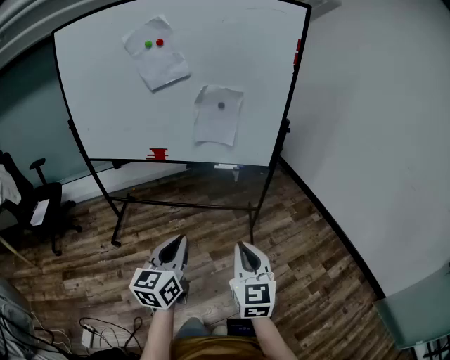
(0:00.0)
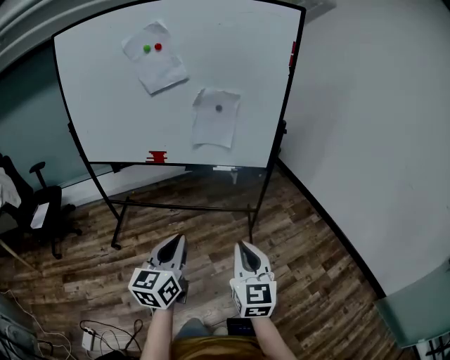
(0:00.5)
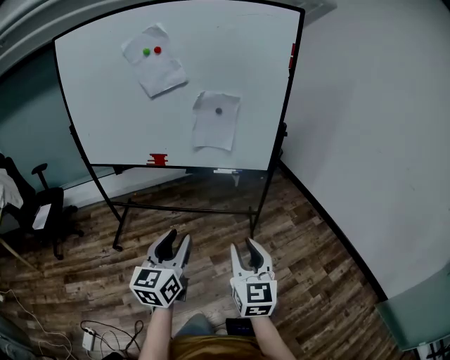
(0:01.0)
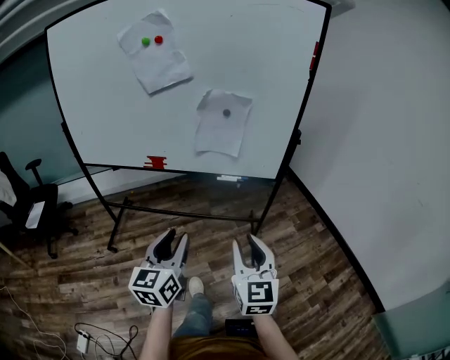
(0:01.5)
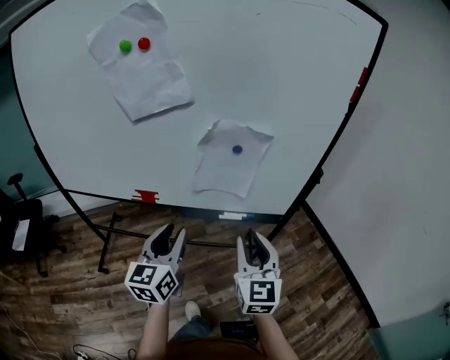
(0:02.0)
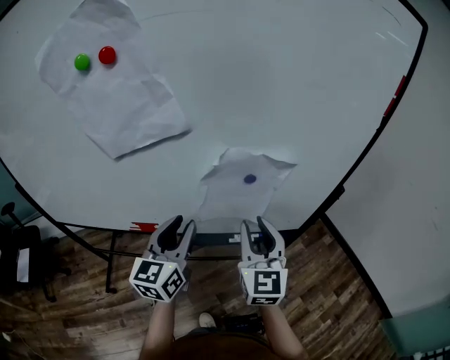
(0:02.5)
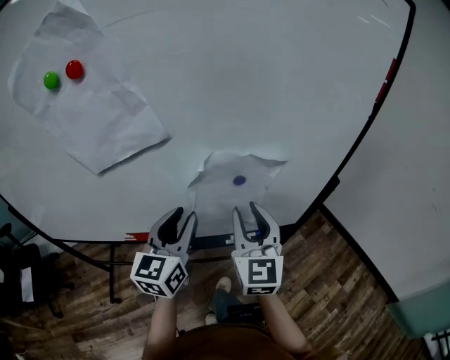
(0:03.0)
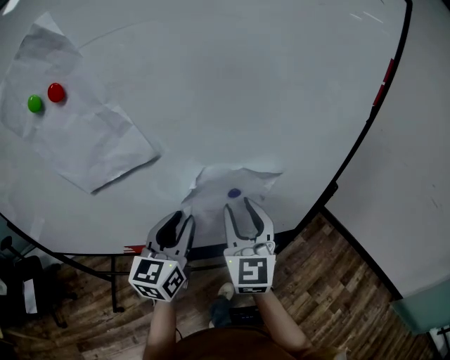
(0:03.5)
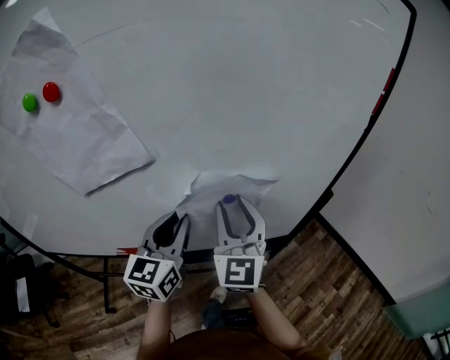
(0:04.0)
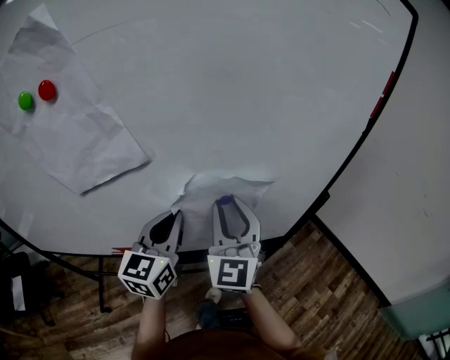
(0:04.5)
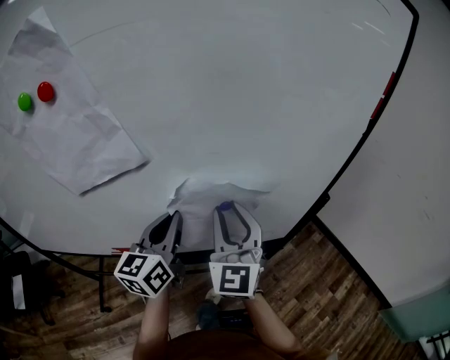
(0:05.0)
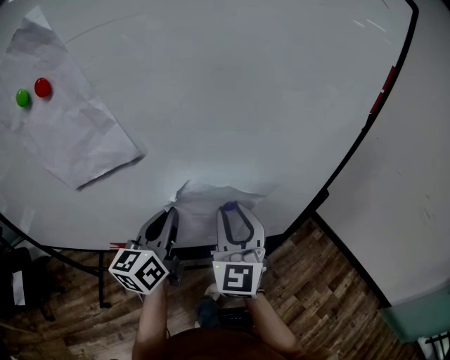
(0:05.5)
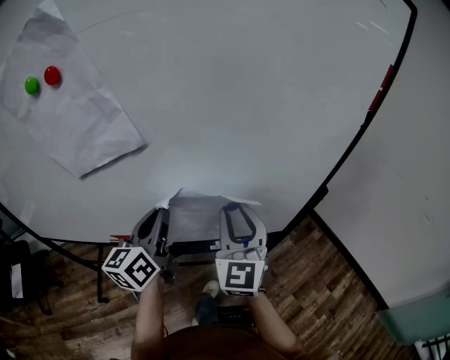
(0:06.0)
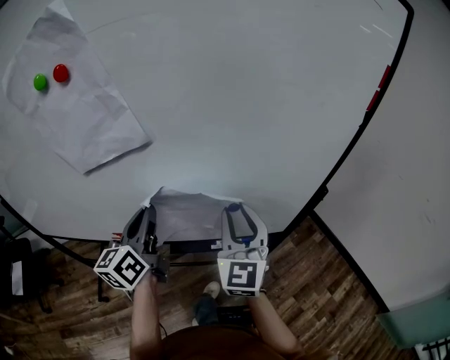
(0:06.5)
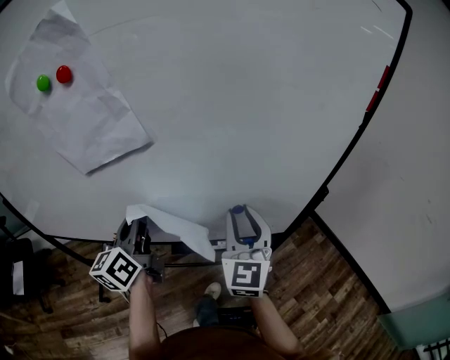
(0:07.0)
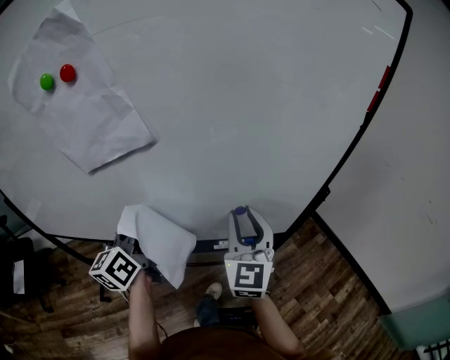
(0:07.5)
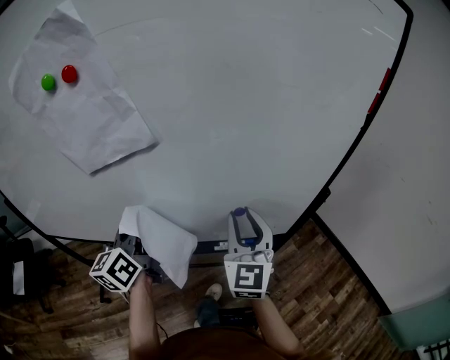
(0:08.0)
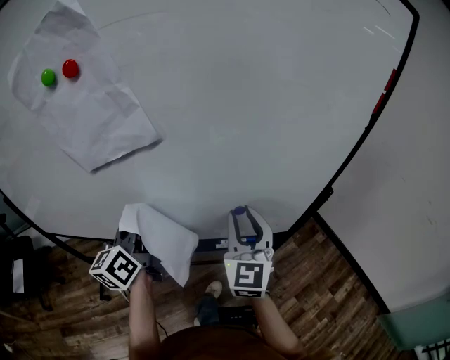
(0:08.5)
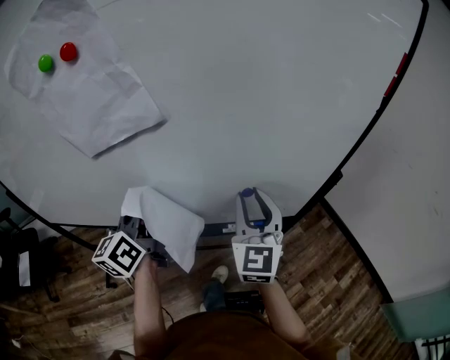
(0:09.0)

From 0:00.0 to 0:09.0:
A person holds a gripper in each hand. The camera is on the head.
From 0:00.0 to 0:02.0: The grippers both shift forward by approximately 35 cm. The left gripper opens. The right gripper opens its fingers.
From 0:02.0 to 0:04.5: The grippers both shift forward by roughly 25 cm. The right gripper changes its angle by some 20 degrees. The left gripper closes.
From 0:04.5 to 0:07.0: The left gripper moves to the left, roughly 10 cm, and swivels approximately 30 degrees. Meanwhile the right gripper changes place by roughly 5 cm.
From 0:07.0 to 0:09.0: There are only small adjustments of the grippers.

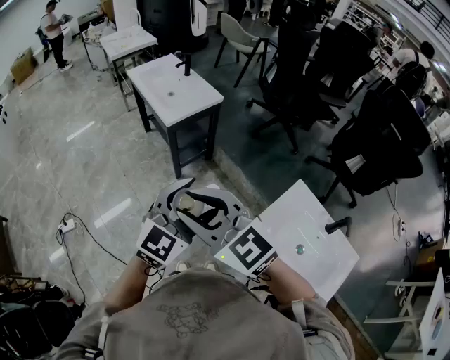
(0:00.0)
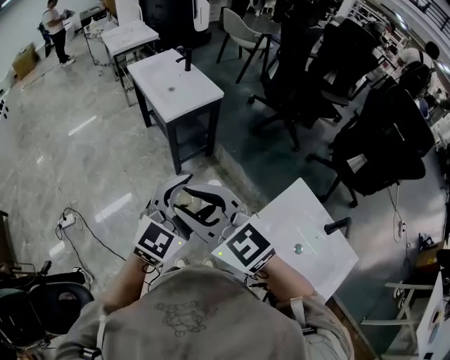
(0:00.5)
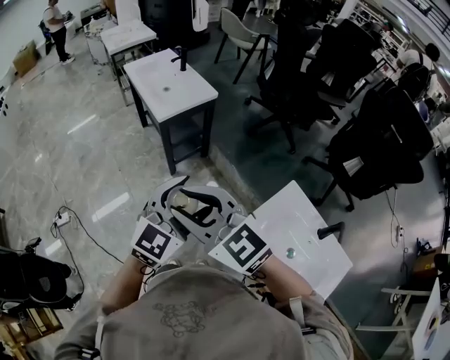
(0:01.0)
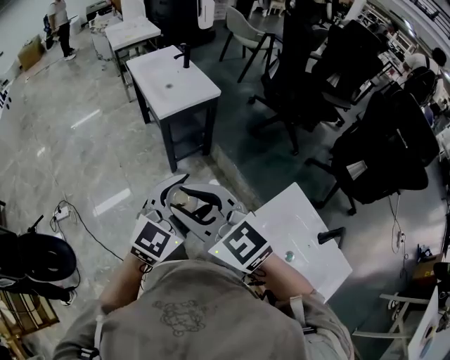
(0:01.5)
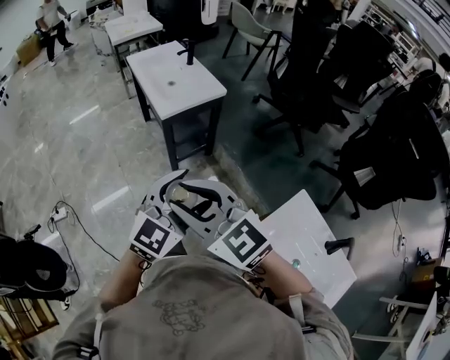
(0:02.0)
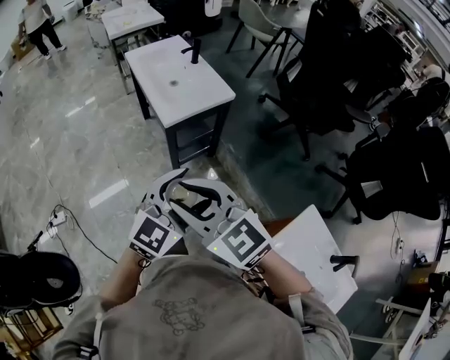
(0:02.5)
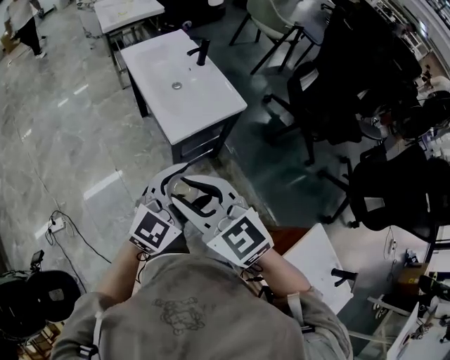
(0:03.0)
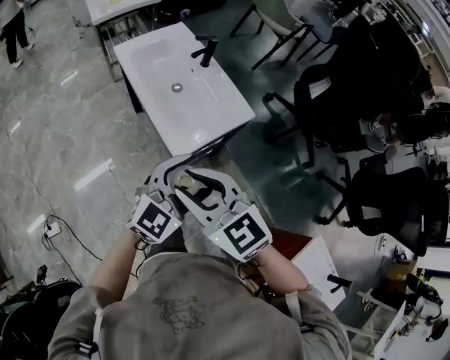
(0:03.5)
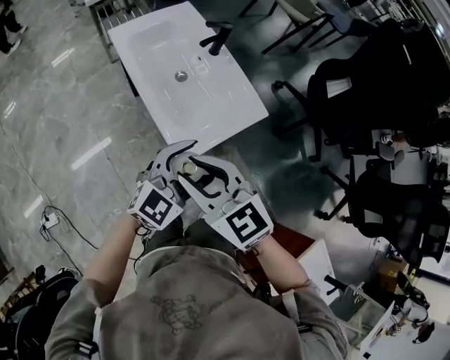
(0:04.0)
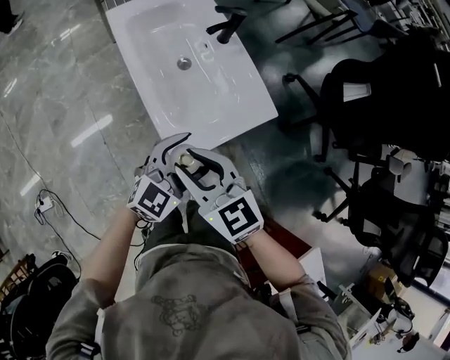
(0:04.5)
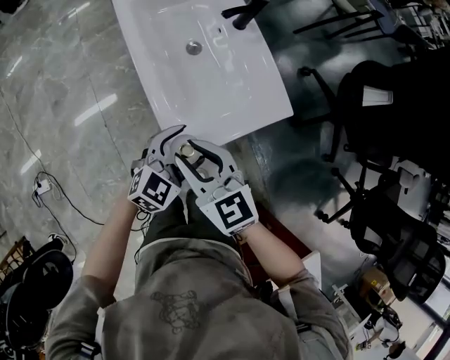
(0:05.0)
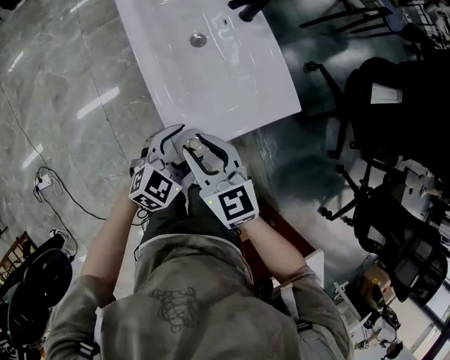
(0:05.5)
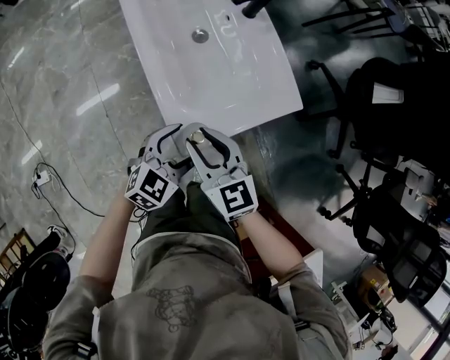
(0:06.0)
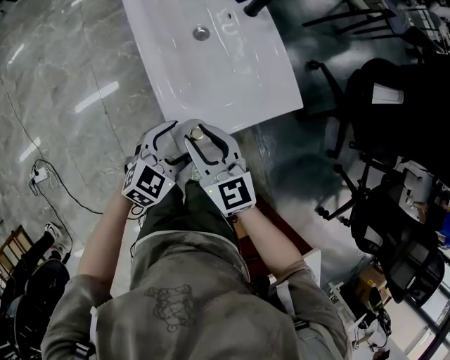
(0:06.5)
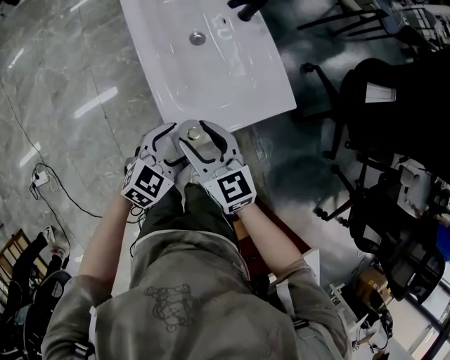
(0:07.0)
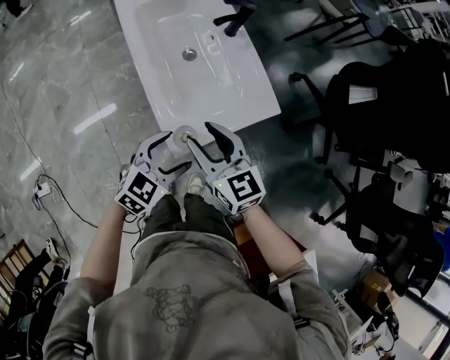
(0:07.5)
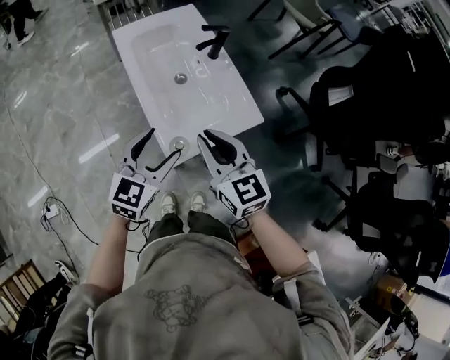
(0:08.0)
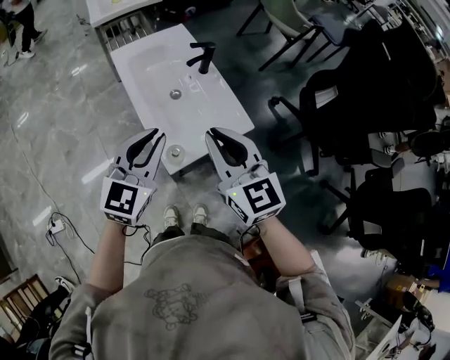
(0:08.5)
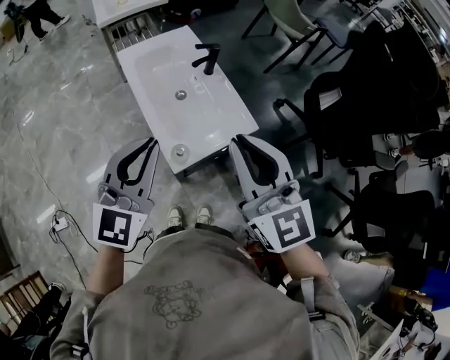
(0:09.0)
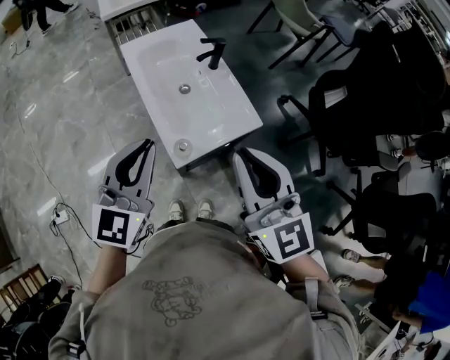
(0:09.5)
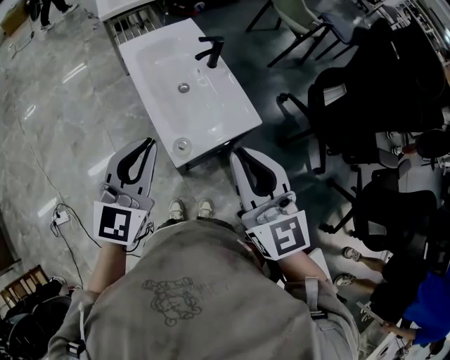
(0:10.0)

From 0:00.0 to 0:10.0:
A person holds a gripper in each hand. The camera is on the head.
From 0:00.0 to 0:02.0: The grippers both shift forward and downward by about 10 cm.
From 0:02.0 to 0:04.0: The two grippers travel together, forward, some 50 cm.
From 0:04.0 to 0:06.0: The left gripper moves downward, roughly 20 cm, and rotates some 20 degrees; the right gripper is displaced downward and forward by some 20 cm.
From 0:06.0 to 0:08.0: Both grippers move upward, some 20 cm. The left gripper turns by some 20 degrees.
From 0:08.0 to 0:10.0: The left gripper heads upward, covering roughly 15 cm, and closes. The right gripper moves upward and backward, roughly 15 cm.

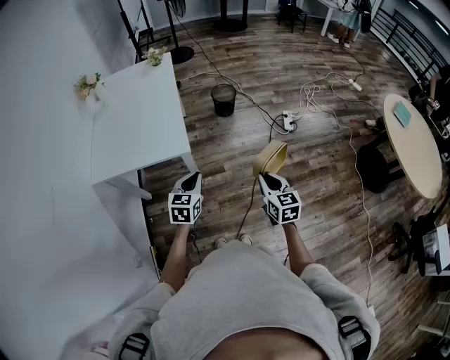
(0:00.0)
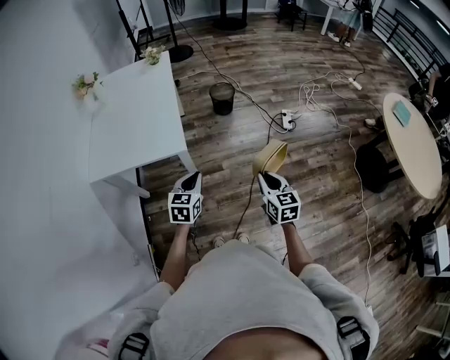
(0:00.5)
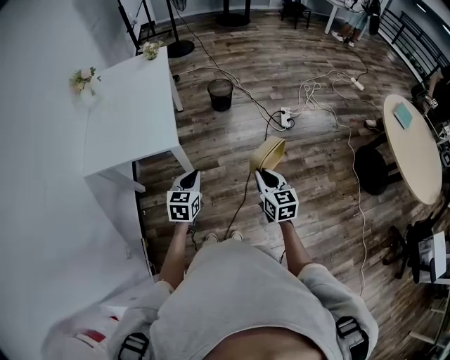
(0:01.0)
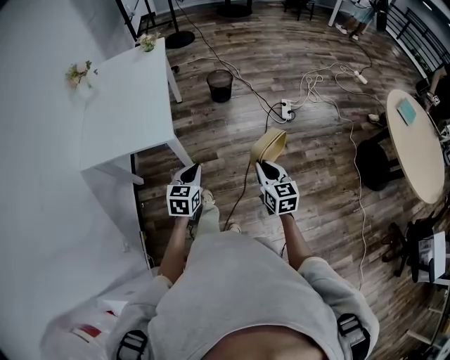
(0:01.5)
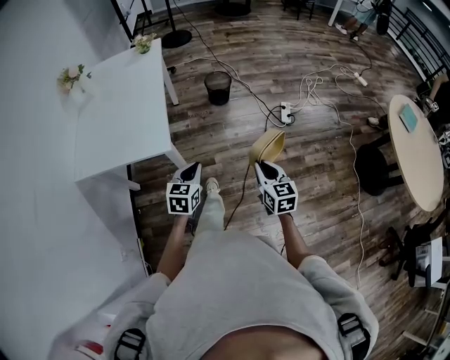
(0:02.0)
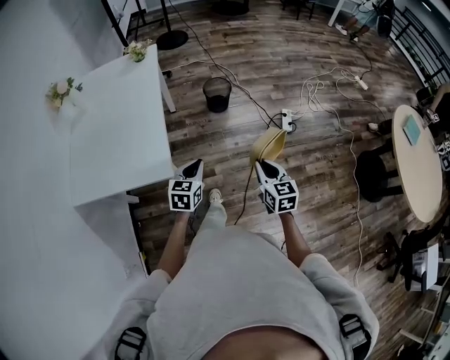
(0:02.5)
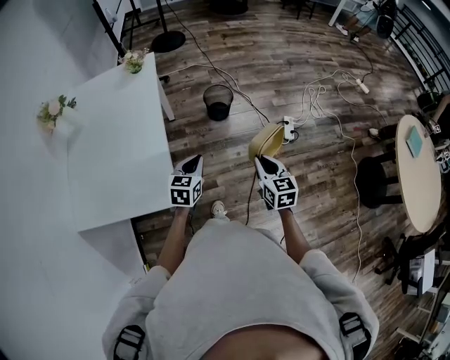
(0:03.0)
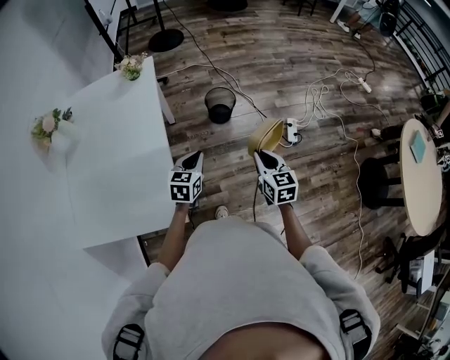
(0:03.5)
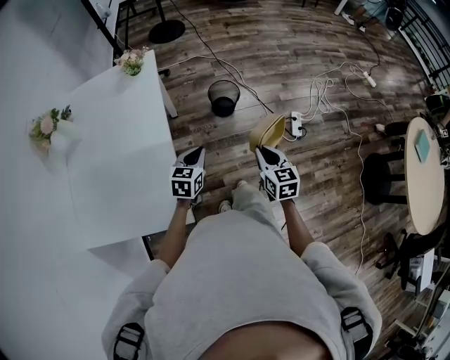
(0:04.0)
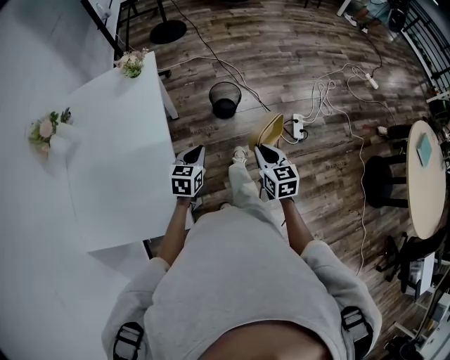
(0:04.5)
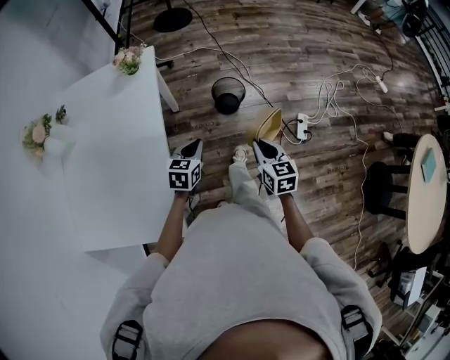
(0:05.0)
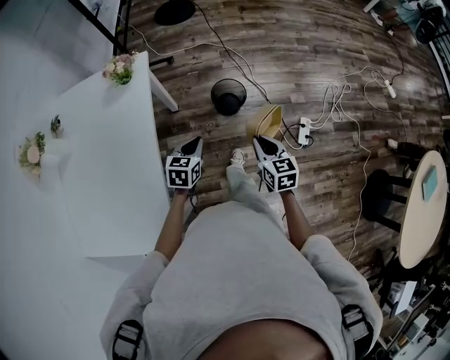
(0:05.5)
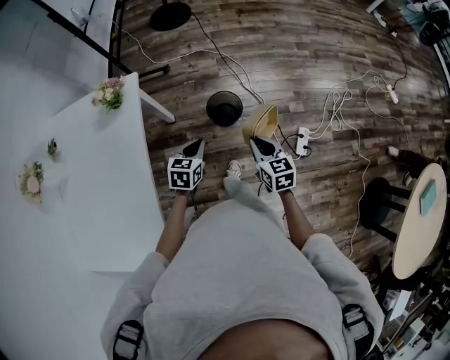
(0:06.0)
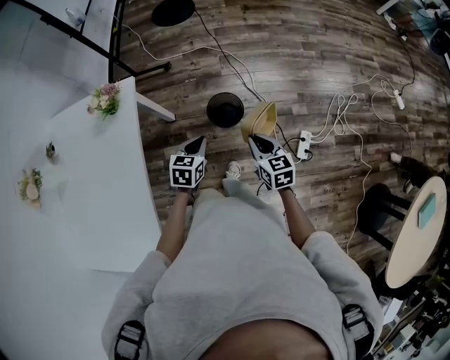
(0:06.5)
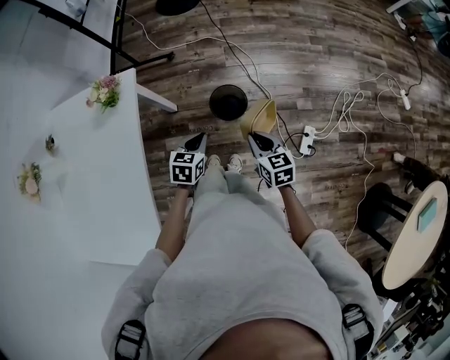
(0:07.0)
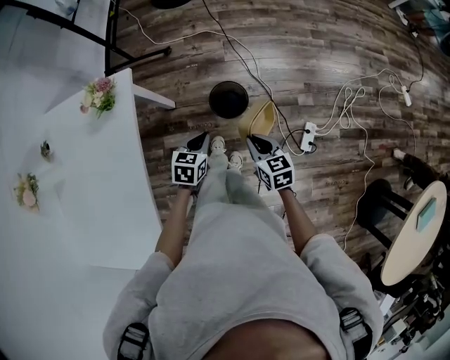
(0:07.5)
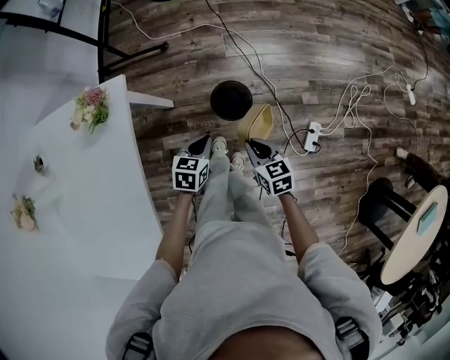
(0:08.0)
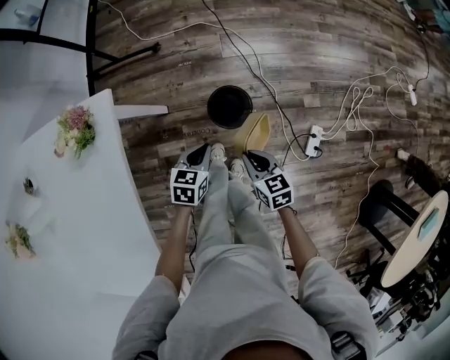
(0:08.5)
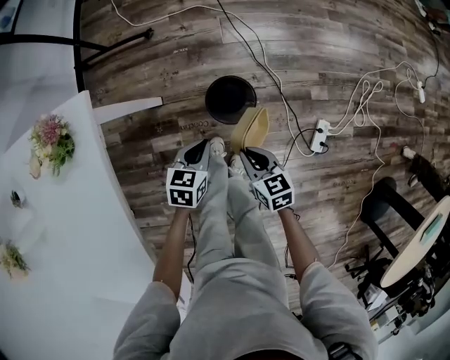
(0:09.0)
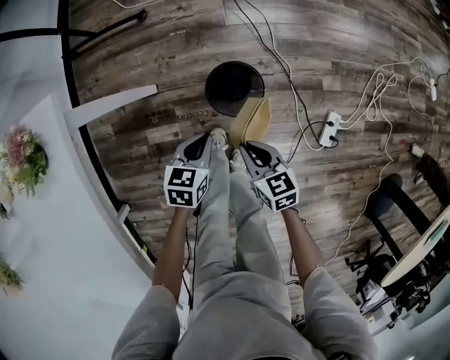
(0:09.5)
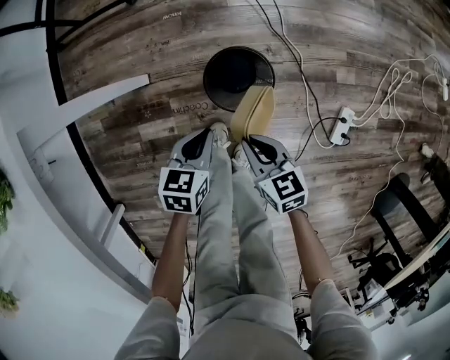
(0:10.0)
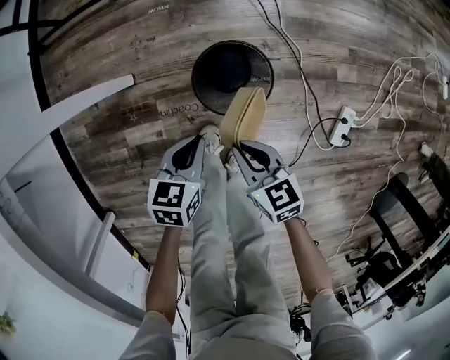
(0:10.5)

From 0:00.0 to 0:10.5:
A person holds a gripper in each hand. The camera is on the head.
From 0:00.0 to 0:02.0: The right gripper heads forward and to the right, covering roughly 10 cm. The left gripper moves to the right and forward, some 10 cm.
From 0:02.0 to 0:04.0: Both grippers travel together forward, about 35 cm.
From 0:04.0 to 0:06.5: Both grippers travel together forward, roughly 35 cm.
From 0:06.5 to 0:08.5: The left gripper moves downward and forward, approximately 15 cm. The right gripper travels downward and to the left by some 15 cm.
From 0:08.5 to 0:10.5: Both grippers travel together downward, some 25 cm.
